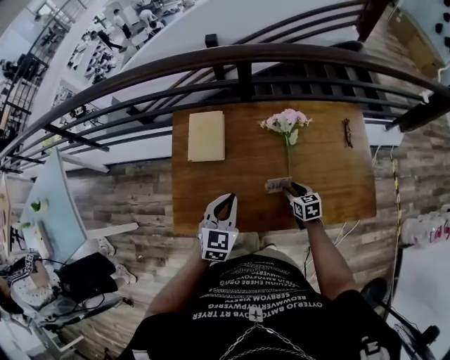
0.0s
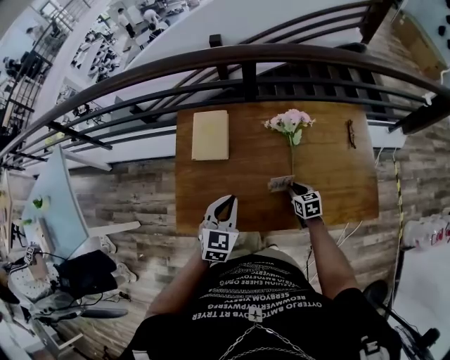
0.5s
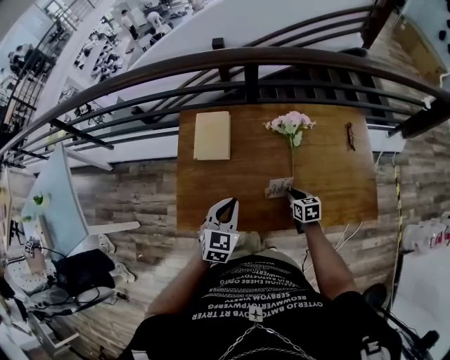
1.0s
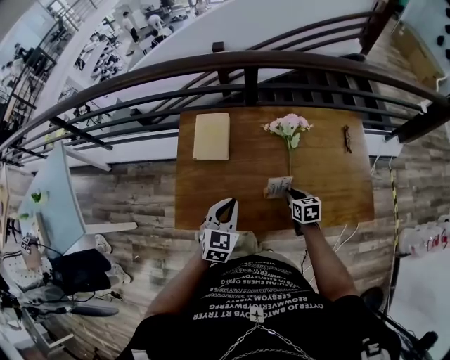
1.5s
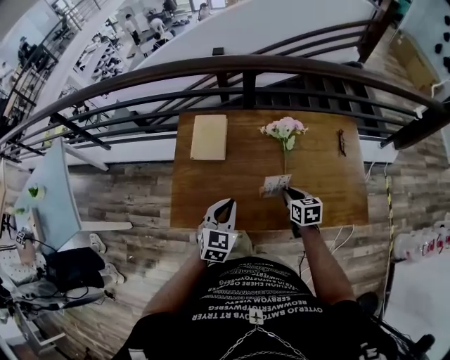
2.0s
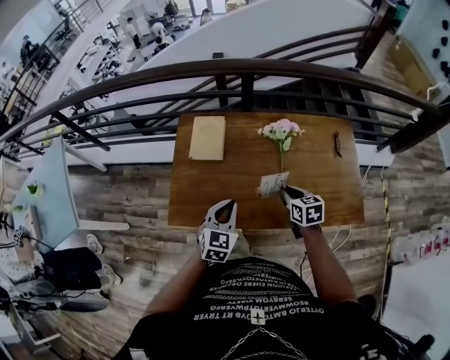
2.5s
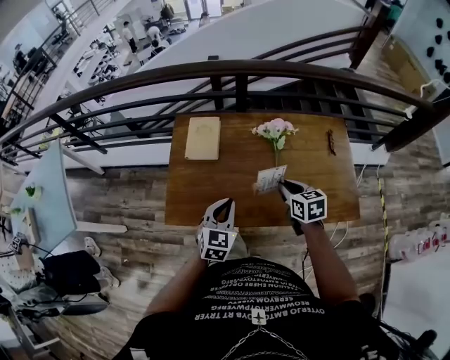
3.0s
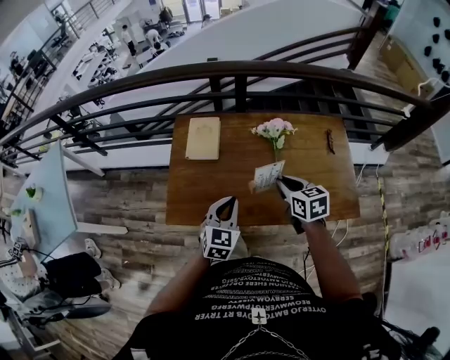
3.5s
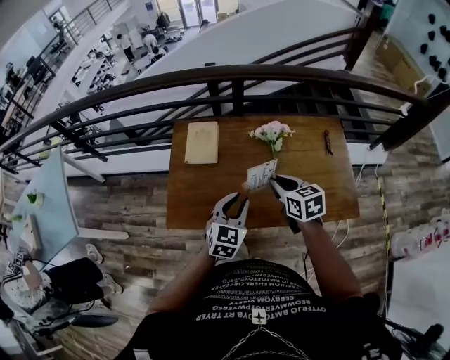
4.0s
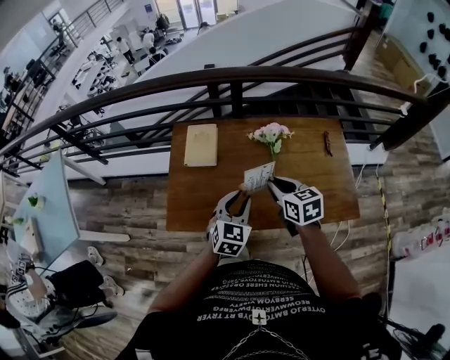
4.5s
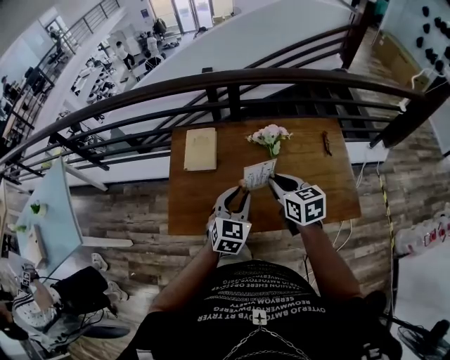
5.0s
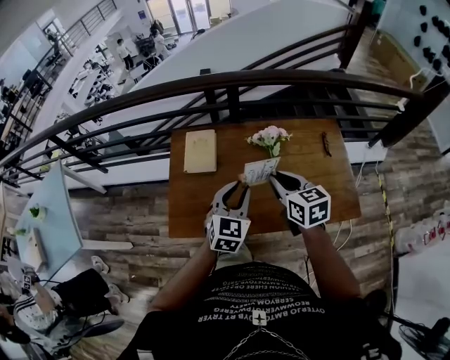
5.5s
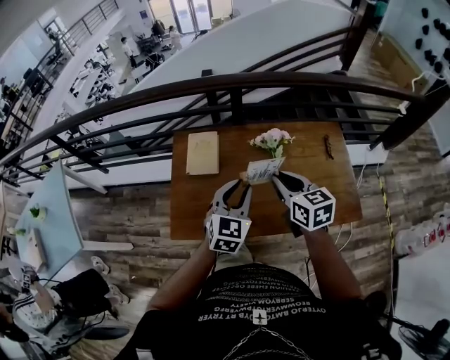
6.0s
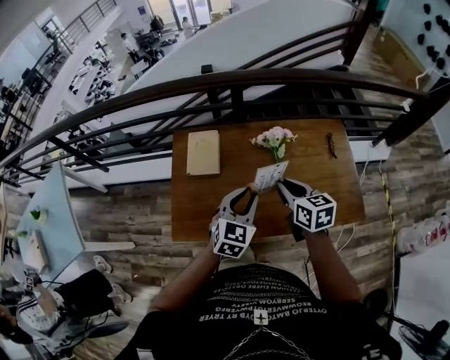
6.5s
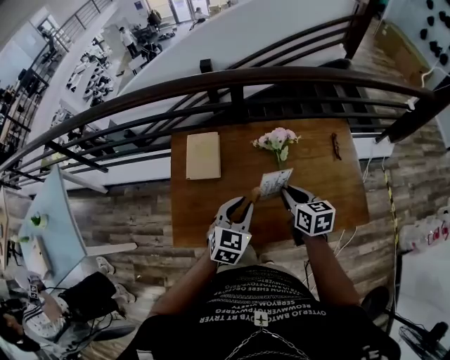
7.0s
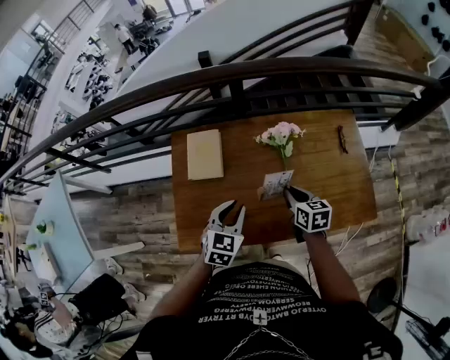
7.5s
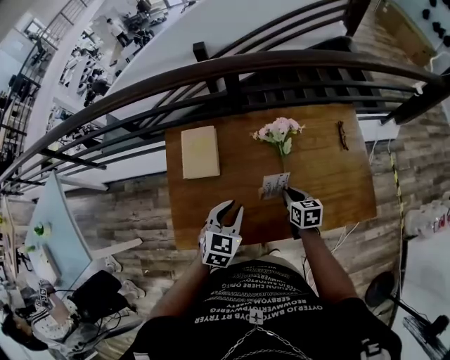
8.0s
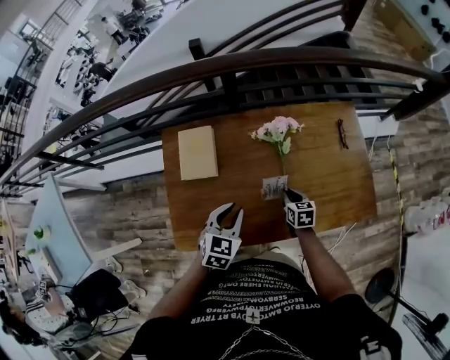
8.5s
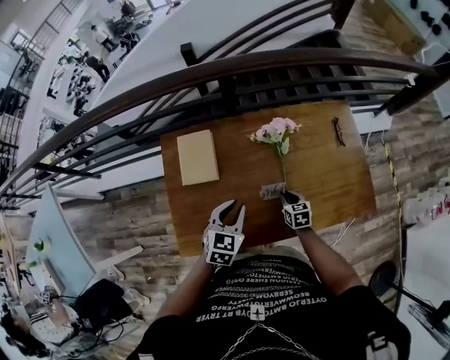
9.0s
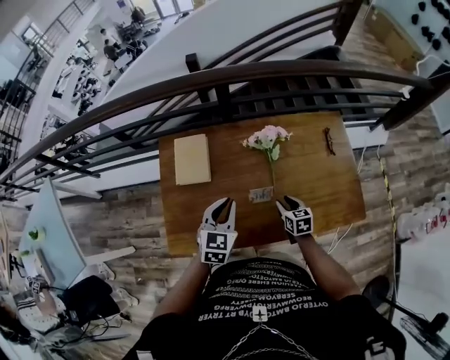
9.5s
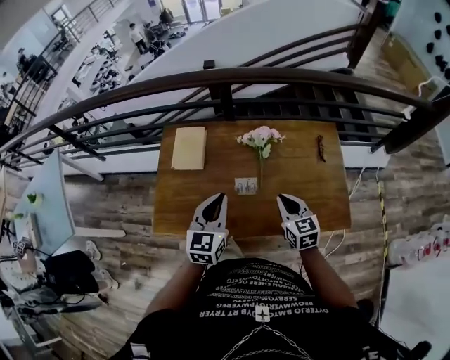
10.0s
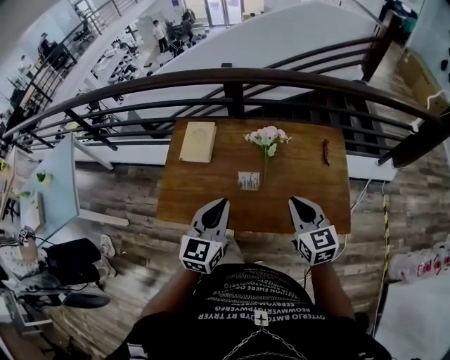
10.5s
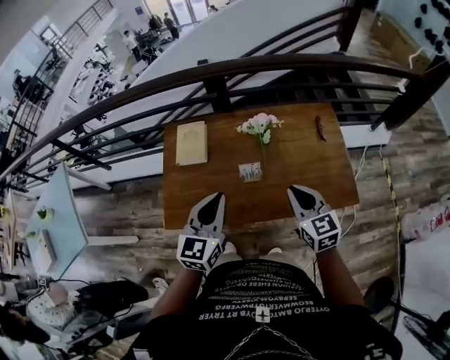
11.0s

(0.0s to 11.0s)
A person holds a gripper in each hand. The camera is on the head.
0.0s - 2.0s: The right gripper moves upward, about 10 cm, and closes up. The left gripper shifts about 5 cm backward.
2.0s - 3.5s: The right gripper travels upward by some 15 cm; the left gripper shifts by some 5 cm.
3.5s - 5.5s: The left gripper shifts some 10 cm upward and forward, and opens. Meanwhile the right gripper moves upward, some 10 cm.
5.5s - 7.5s: The right gripper heads downward, covering about 15 cm. Meanwhile the left gripper heads downward and forward, covering roughly 10 cm.
7.5s - 9.0s: The right gripper is displaced downward by roughly 15 cm.
9.0s - 11.0s: The right gripper goes about 35 cm upward and backward, turns by some 30 degrees, and opens, then closes once more. The left gripper goes roughly 20 cm upward and backward, and turns by some 30 degrees.

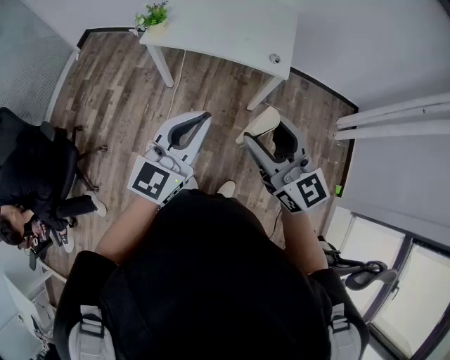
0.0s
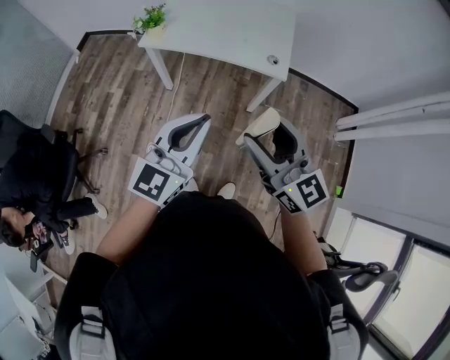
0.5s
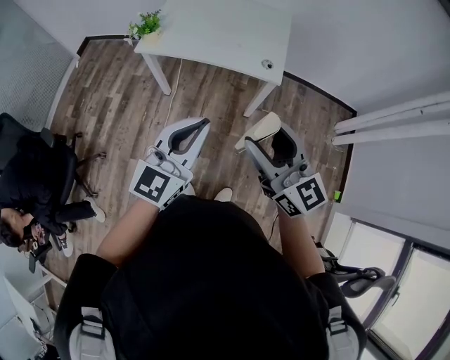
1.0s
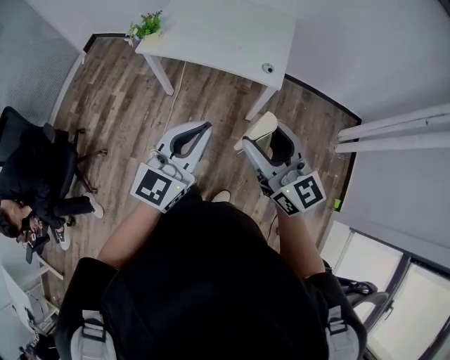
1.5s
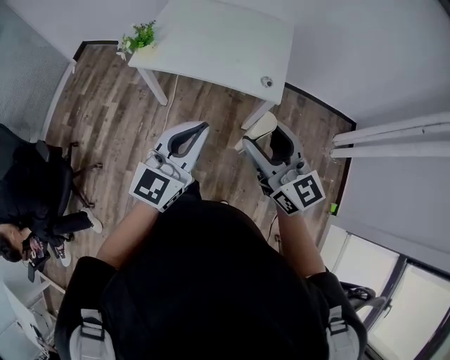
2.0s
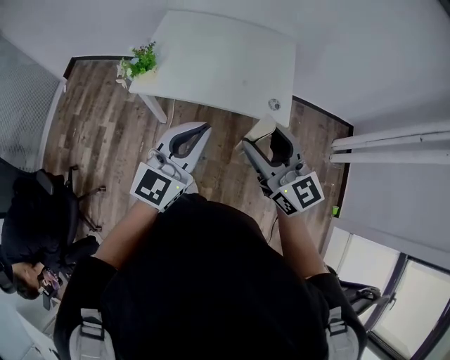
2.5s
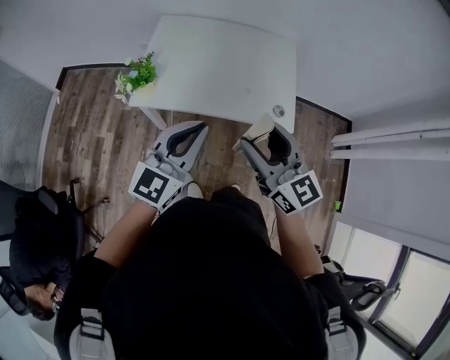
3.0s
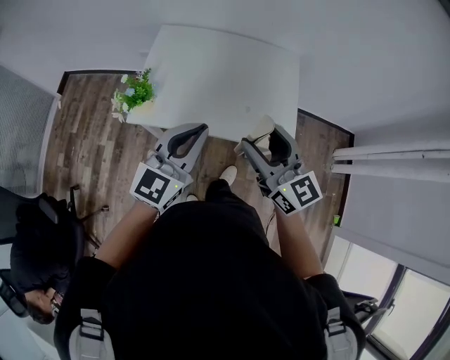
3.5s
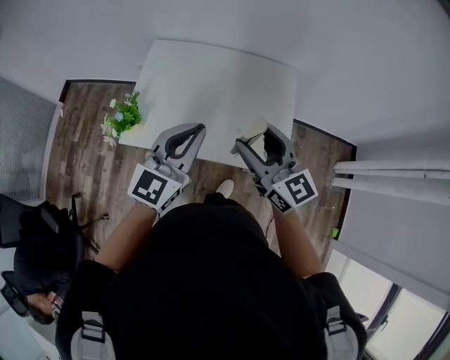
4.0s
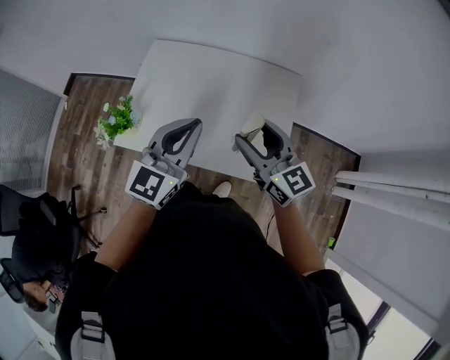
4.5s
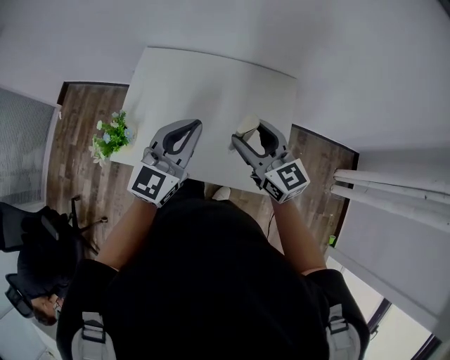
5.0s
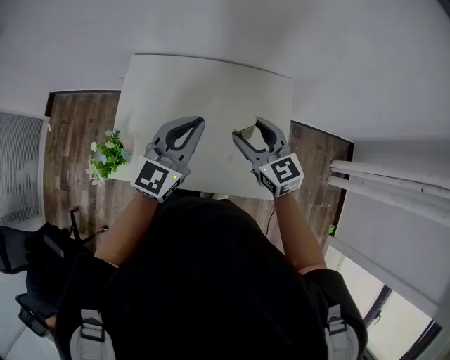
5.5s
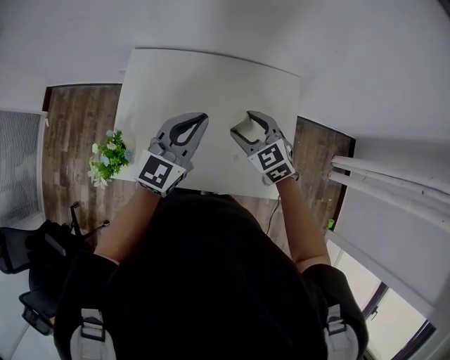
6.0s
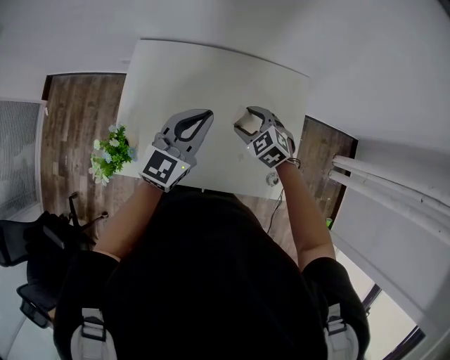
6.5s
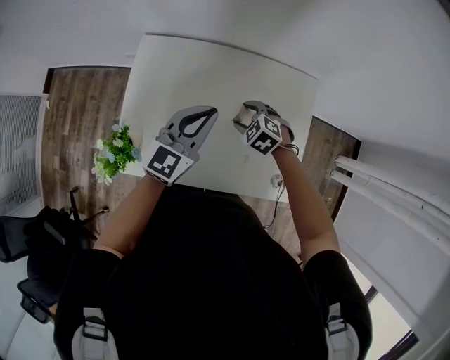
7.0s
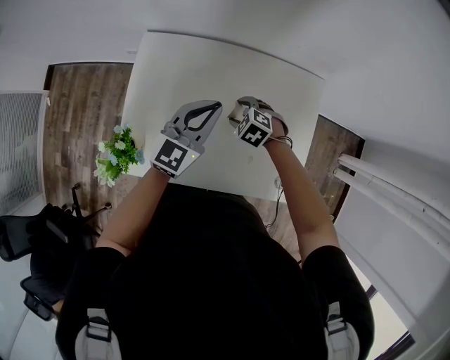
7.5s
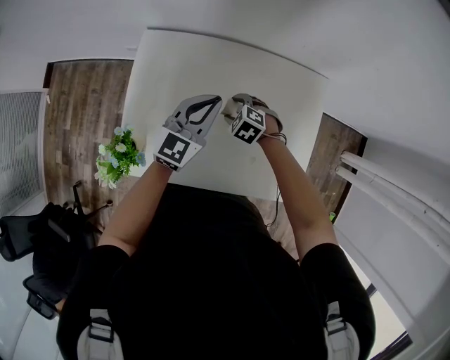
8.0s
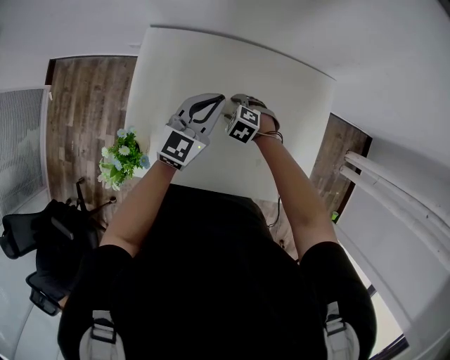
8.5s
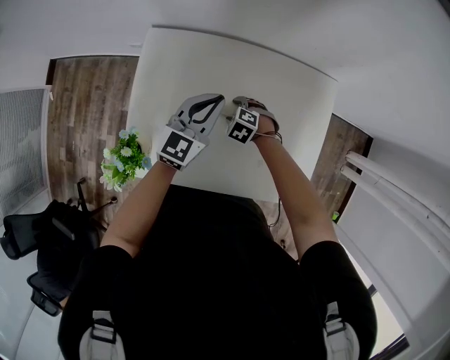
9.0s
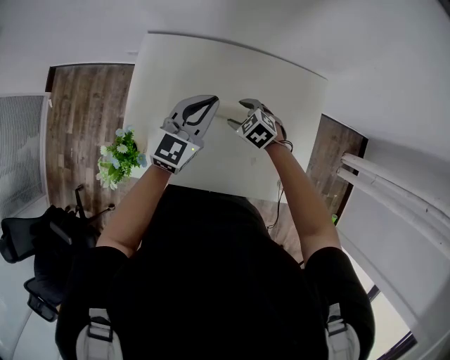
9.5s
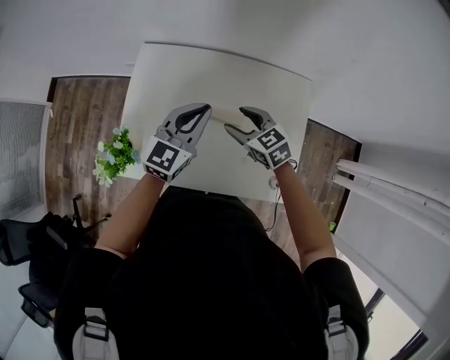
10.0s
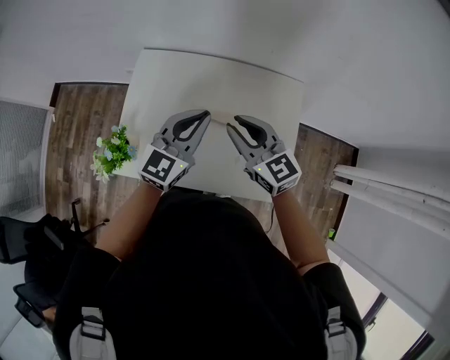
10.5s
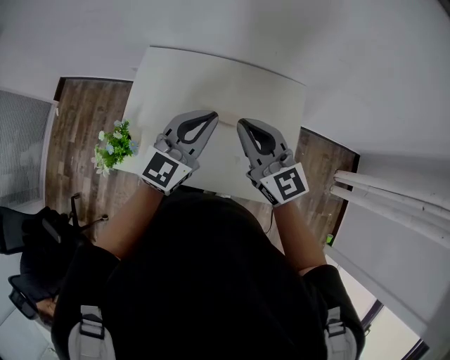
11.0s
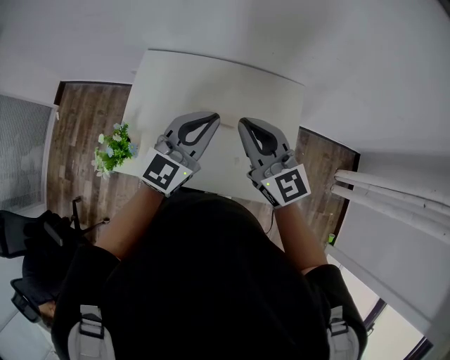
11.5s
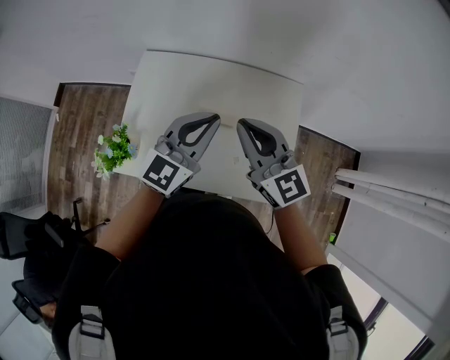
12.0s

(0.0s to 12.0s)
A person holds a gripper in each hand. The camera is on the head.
0.0s - 2.0s: The left gripper goes about 10 cm forward, while the right gripper is displaced forward and to the right by about 15 cm.
2.0s - 4.0s: Both grippers move forward, about 40 cm.
4.0s - 6.0s: The right gripper heads forward and downward, covering some 30 cm, and tips its fingers downward by about 40 degrees; the left gripper moves forward, roughly 20 cm.
6.0s - 8.0s: The left gripper heads downward and forward, covering approximately 15 cm, while the right gripper moves downward, to the left and forward, about 20 cm, and swivels approximately 30 degrees.
8.0s - 10.0s: The left gripper travels upward by roughly 5 cm. The right gripper travels upward by some 15 cm, and changes its angle by roughly 40 degrees.
10.0s - 12.0s: The left gripper shifts about 15 cm upward, backward and to the right. The right gripper is displaced upward by approximately 20 cm, angles its fingers upward, by some 40 degrees, and closes up.

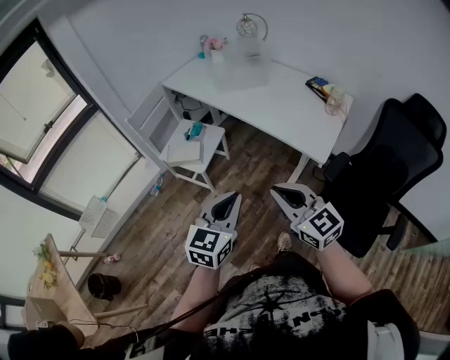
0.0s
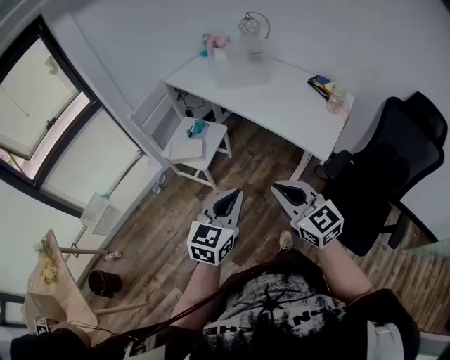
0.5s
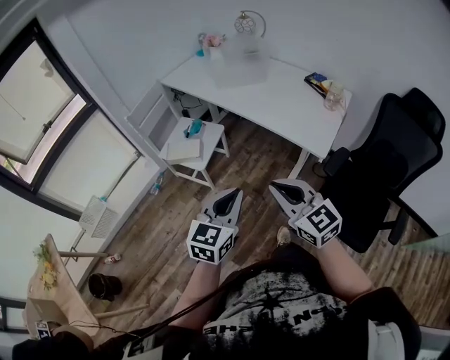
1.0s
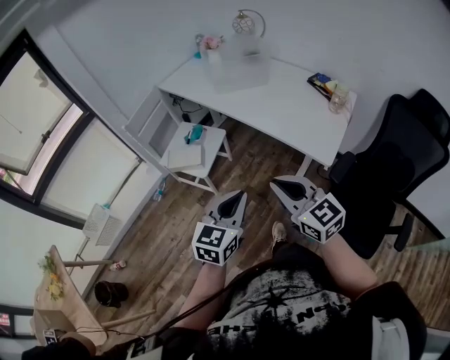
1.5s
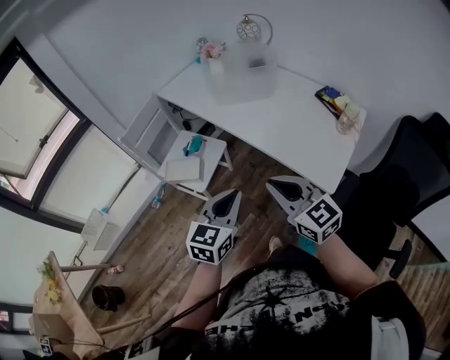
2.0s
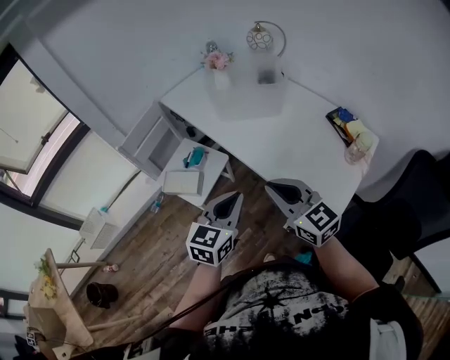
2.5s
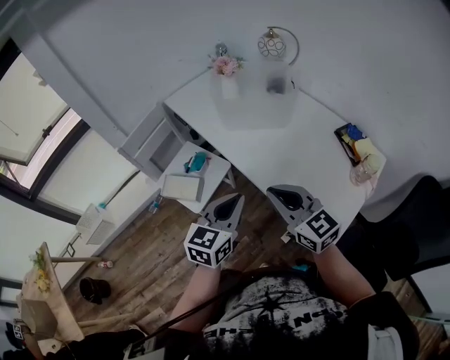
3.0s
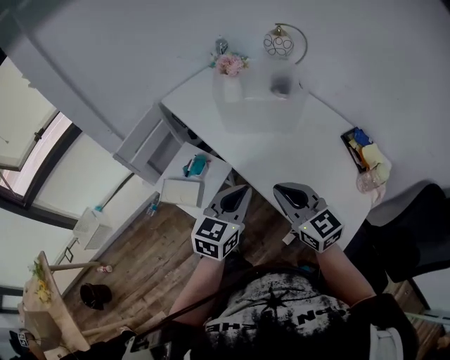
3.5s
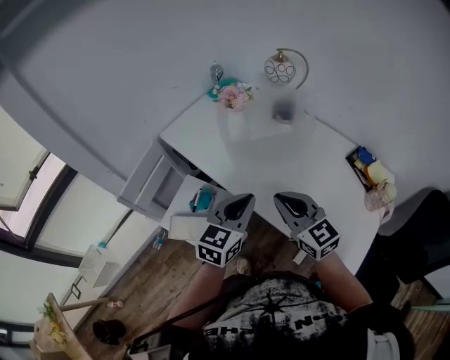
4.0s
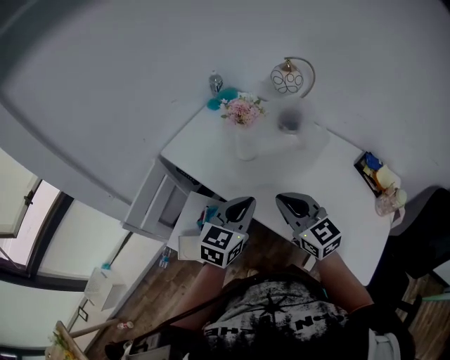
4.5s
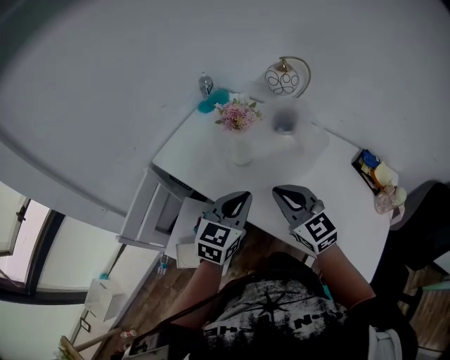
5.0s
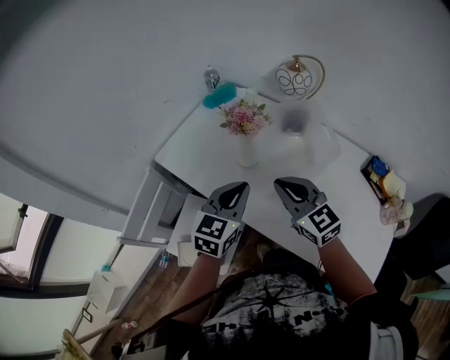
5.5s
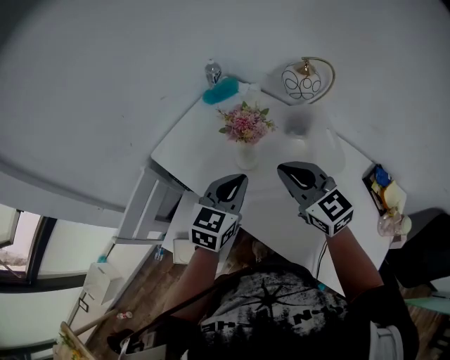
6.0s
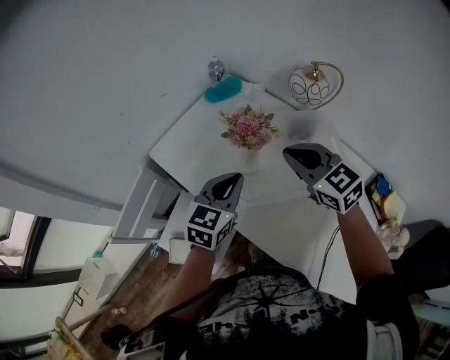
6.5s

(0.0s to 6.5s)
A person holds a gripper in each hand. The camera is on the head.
0.0s - 2.0s: Both grippers travel together forward, some 15 cm.
2.0s - 4.5s: The two grippers travel together, forward, about 40 cm.
4.5s - 6.5s: Both grippers move forward, some 20 cm.
